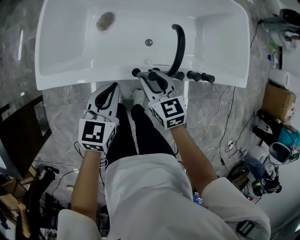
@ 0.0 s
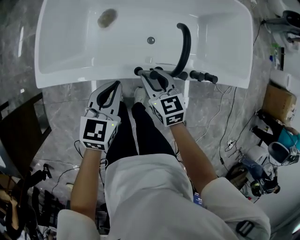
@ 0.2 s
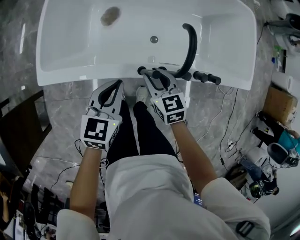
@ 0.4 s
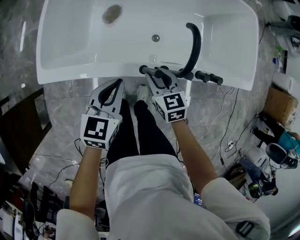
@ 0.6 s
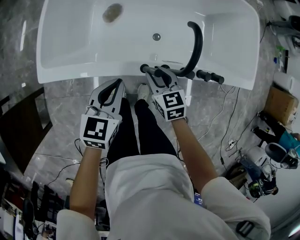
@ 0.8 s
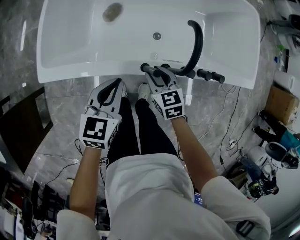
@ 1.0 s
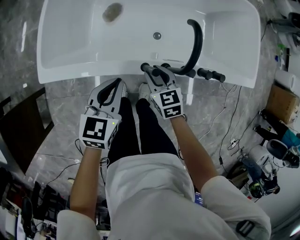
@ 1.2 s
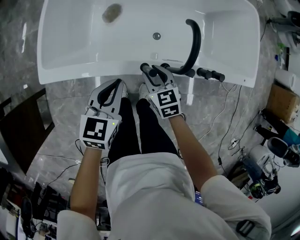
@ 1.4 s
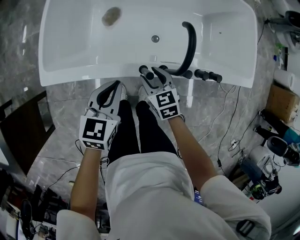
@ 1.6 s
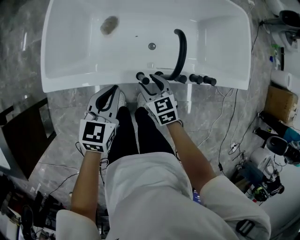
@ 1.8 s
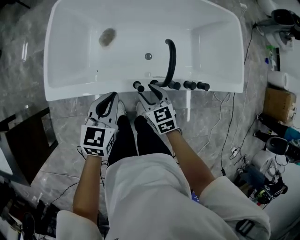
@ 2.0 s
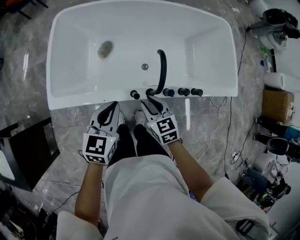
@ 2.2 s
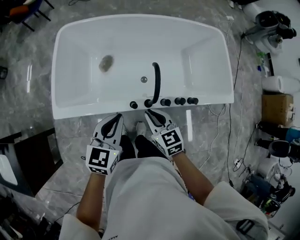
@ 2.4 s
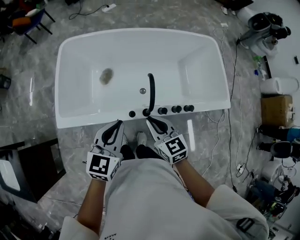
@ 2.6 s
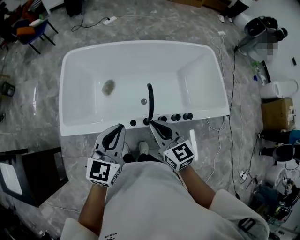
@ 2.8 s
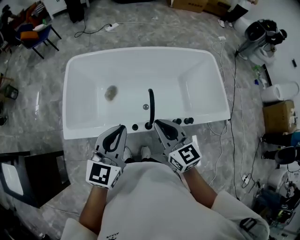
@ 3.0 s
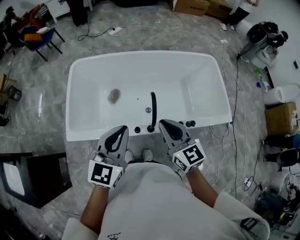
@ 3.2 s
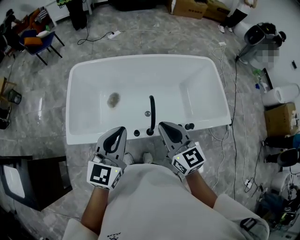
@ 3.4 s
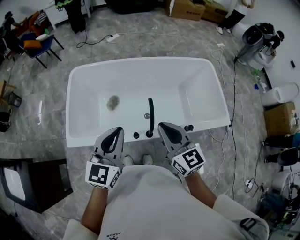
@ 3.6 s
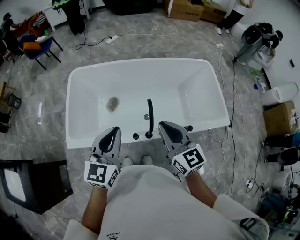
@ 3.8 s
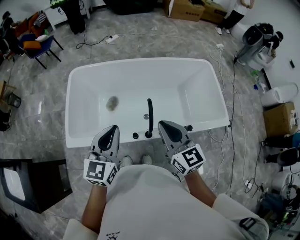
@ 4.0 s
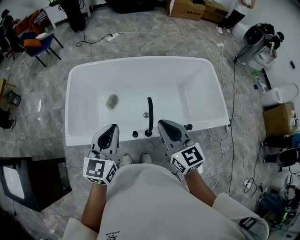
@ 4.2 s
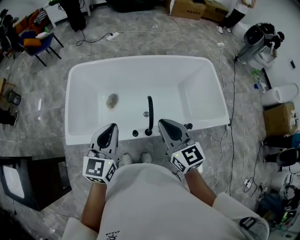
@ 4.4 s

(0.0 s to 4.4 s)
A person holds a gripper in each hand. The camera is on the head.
0.0 s - 1.4 s: The right gripper shifts about 10 cm downward.
1.4 s - 3.0 s: Both grippers move upward, approximately 30 cm. The left gripper rotates about 30 degrees. The right gripper rotates some 30 degrees, and closes.
3.0 s - 4.4 s: There are only small adjustments of the grippers.

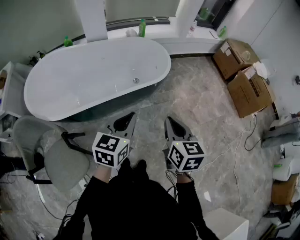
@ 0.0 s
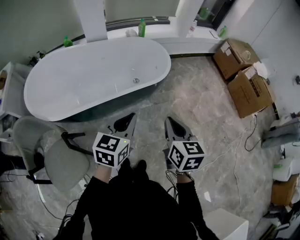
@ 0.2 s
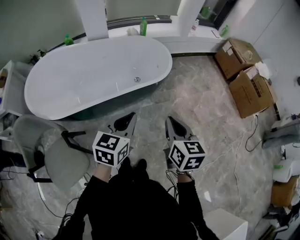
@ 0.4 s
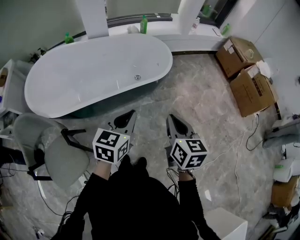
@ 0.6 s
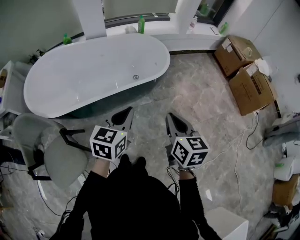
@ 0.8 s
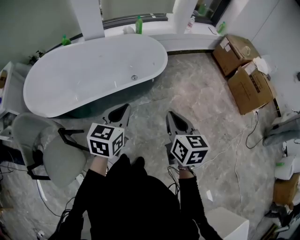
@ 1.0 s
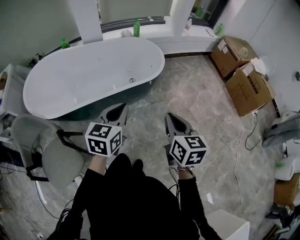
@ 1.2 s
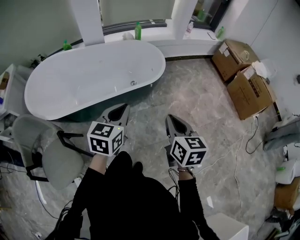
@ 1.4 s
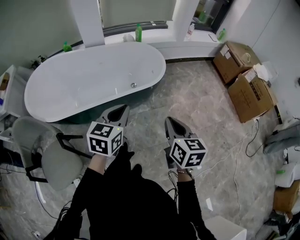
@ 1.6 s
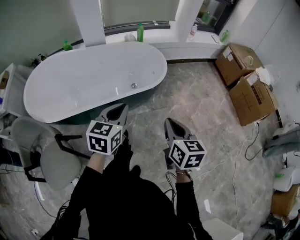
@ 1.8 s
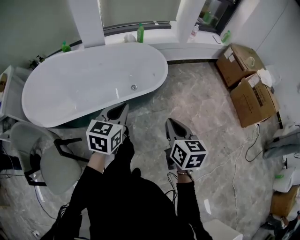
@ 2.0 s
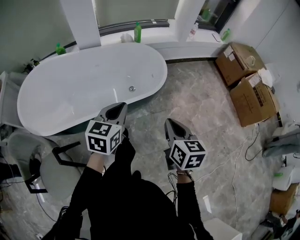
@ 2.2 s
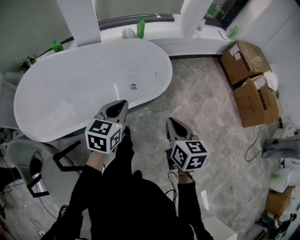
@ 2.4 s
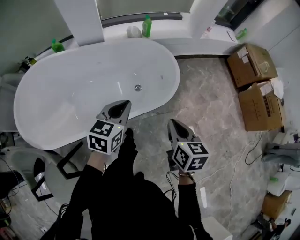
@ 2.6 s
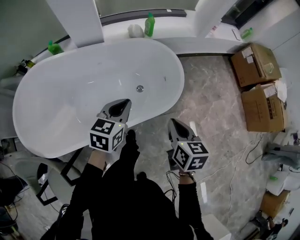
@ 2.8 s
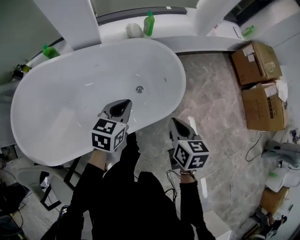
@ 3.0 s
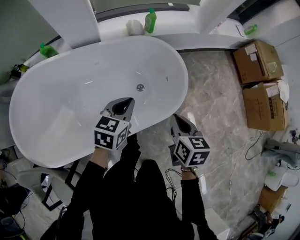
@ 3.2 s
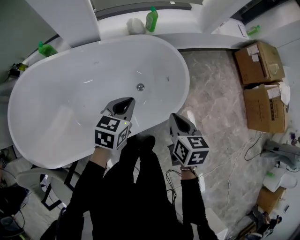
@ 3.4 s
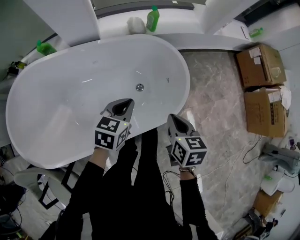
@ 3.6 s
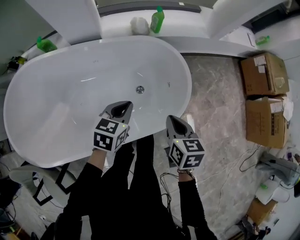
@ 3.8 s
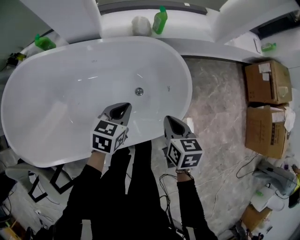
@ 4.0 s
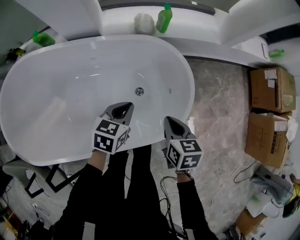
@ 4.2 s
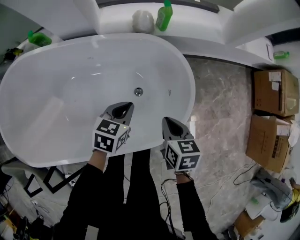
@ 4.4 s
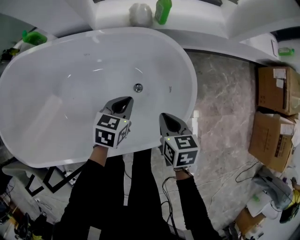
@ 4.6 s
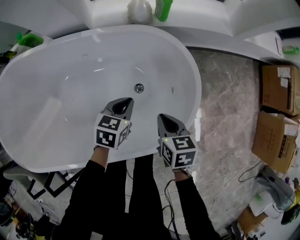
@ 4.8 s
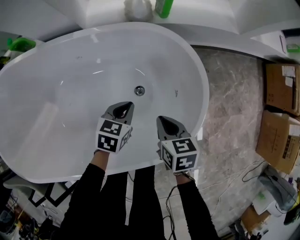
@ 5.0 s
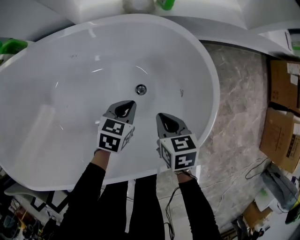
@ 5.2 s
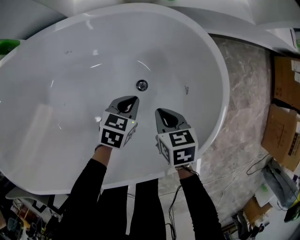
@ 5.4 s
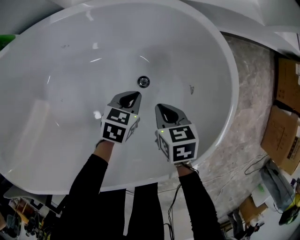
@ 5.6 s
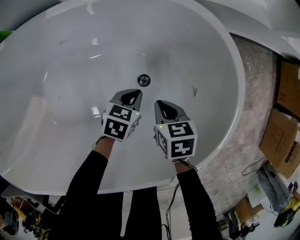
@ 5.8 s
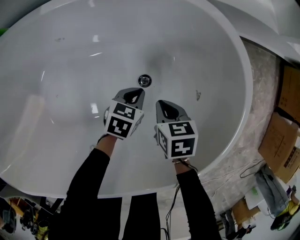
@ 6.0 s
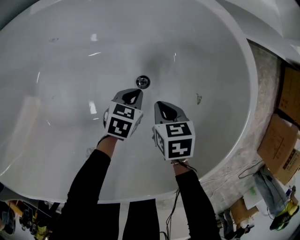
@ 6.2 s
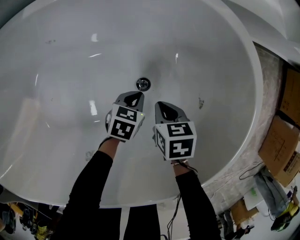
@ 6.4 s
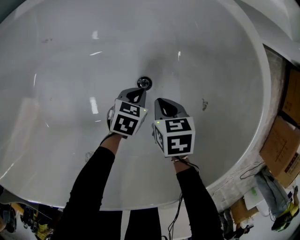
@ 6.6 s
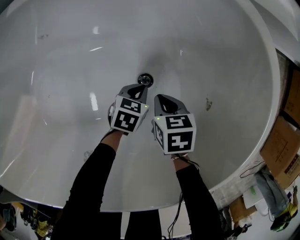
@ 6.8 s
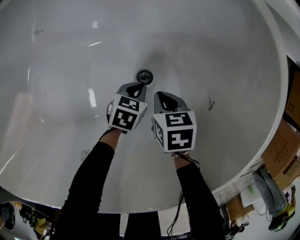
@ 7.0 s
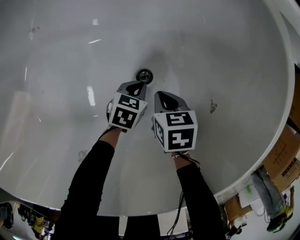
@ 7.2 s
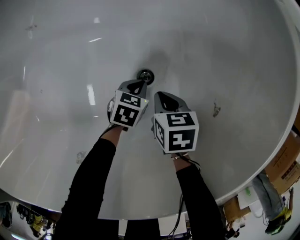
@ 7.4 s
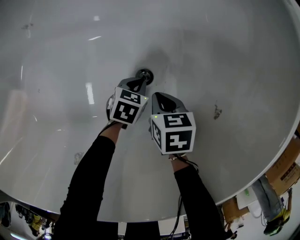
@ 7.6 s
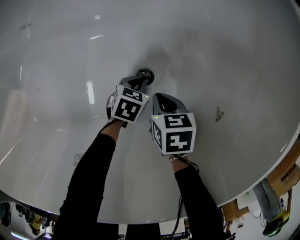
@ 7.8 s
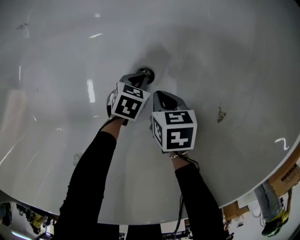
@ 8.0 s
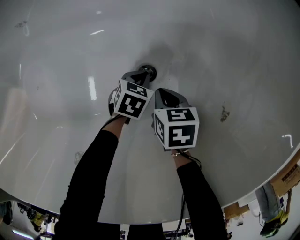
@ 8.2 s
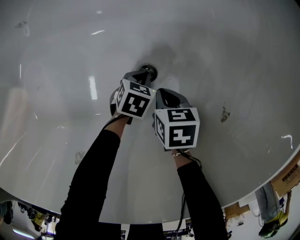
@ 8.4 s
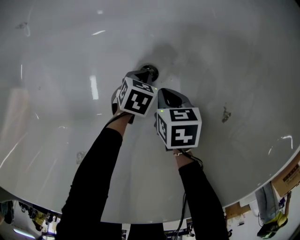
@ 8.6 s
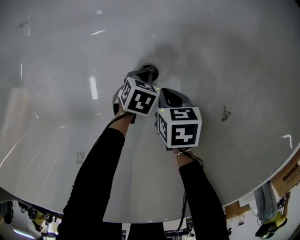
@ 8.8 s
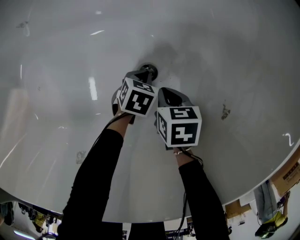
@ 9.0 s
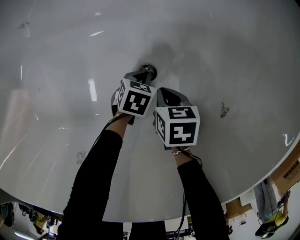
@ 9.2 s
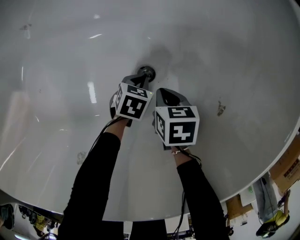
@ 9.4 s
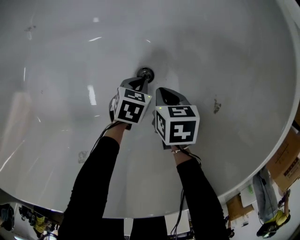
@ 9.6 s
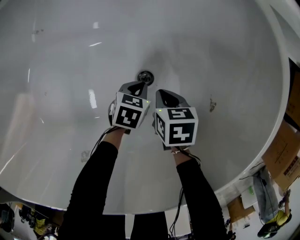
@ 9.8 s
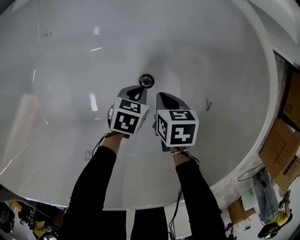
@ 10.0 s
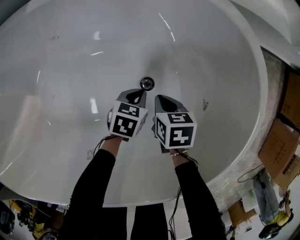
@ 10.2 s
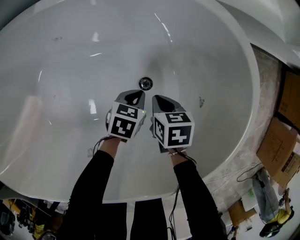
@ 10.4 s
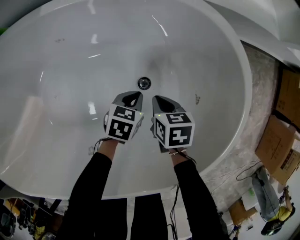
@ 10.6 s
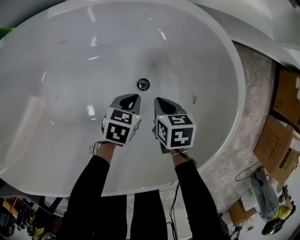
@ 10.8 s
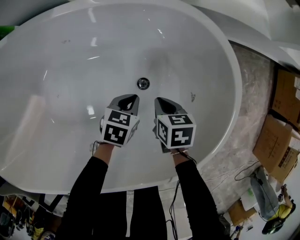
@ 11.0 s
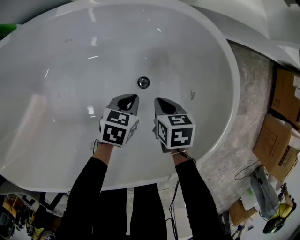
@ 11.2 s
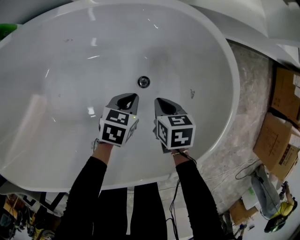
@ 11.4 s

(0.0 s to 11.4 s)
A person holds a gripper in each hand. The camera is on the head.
0.0 s - 1.4 s: The right gripper shifts roughly 5 cm to the right.
1.4 s - 2.8 s: The two grippers go roughly 30 cm forward.
2.8 s - 4.2 s: The grippers both shift forward and downward by approximately 25 cm.
4.2 s - 5.6 s: The grippers both shift downward by roughly 25 cm.
5.6 s - 7.2 s: The grippers both shift downward by about 20 cm.
7.2 s - 8.6 s: Both grippers move downward, about 5 cm.
8.6 s - 10.0 s: The left gripper heads upward, covering some 10 cm; the right gripper moves upward, roughly 10 cm.
10.0 s - 11.4 s: Both grippers travel together upward, about 15 cm.

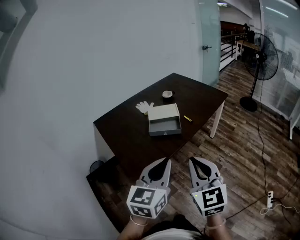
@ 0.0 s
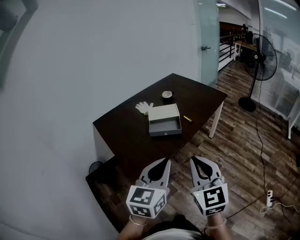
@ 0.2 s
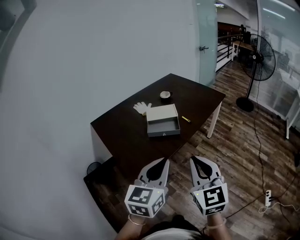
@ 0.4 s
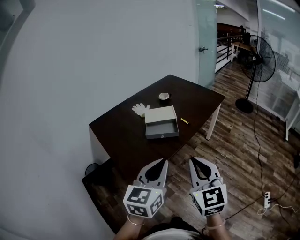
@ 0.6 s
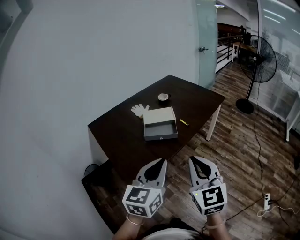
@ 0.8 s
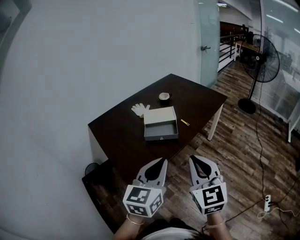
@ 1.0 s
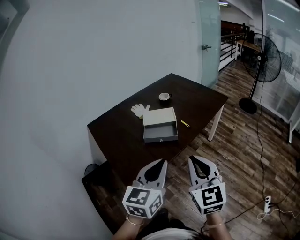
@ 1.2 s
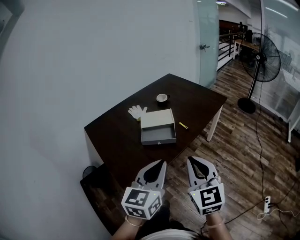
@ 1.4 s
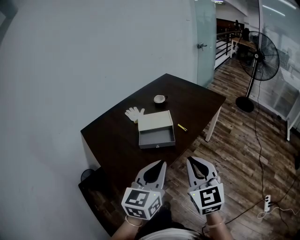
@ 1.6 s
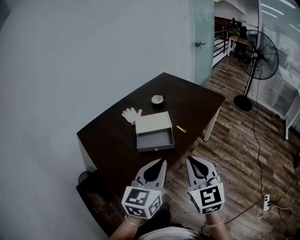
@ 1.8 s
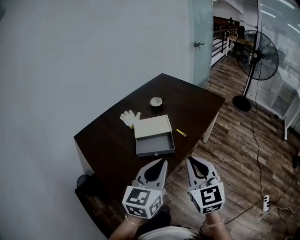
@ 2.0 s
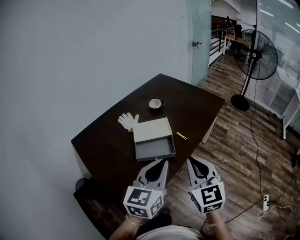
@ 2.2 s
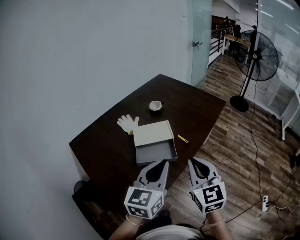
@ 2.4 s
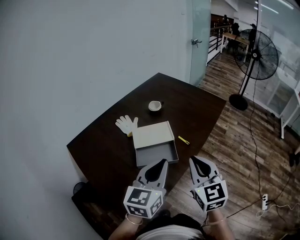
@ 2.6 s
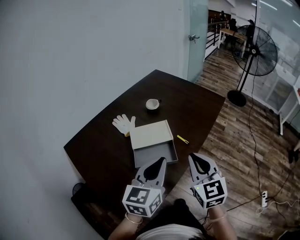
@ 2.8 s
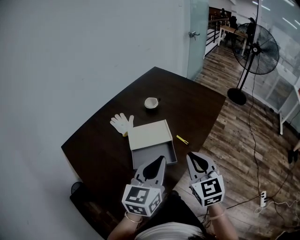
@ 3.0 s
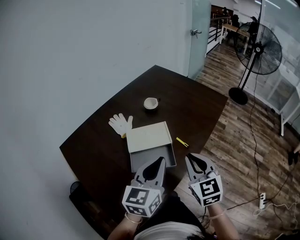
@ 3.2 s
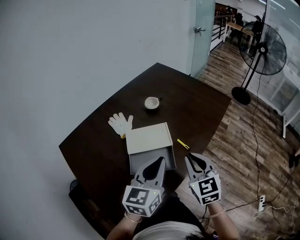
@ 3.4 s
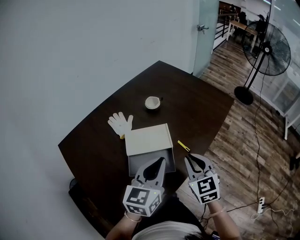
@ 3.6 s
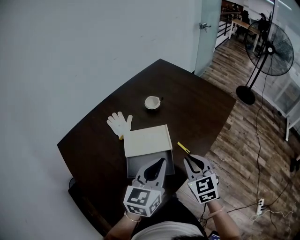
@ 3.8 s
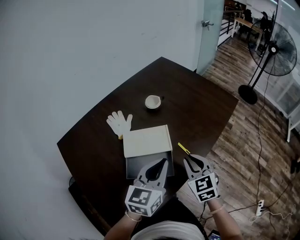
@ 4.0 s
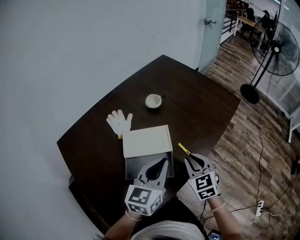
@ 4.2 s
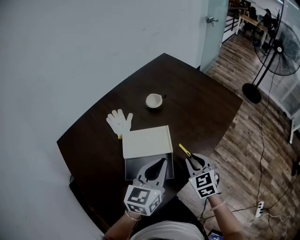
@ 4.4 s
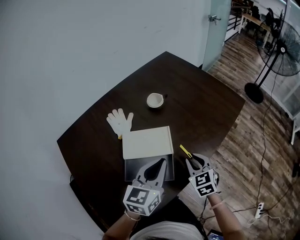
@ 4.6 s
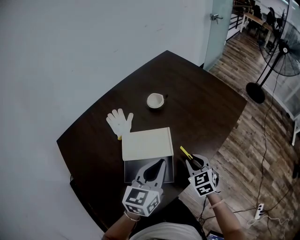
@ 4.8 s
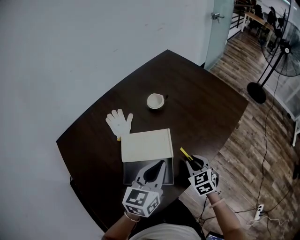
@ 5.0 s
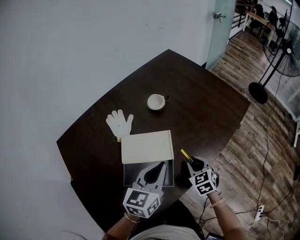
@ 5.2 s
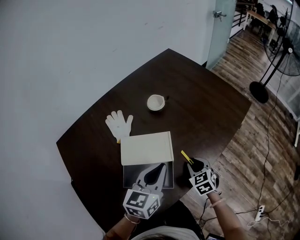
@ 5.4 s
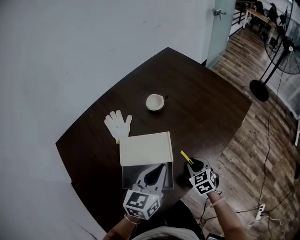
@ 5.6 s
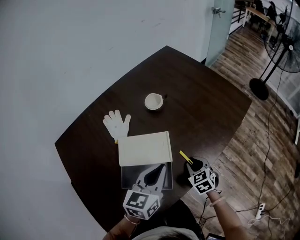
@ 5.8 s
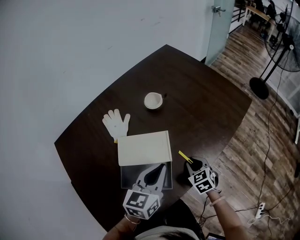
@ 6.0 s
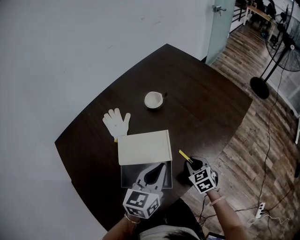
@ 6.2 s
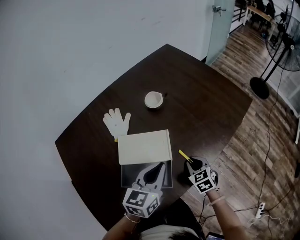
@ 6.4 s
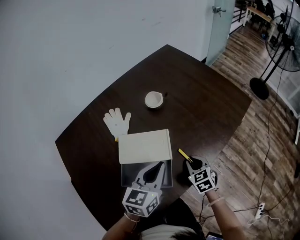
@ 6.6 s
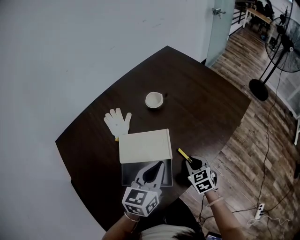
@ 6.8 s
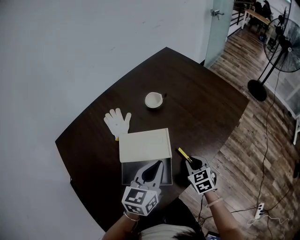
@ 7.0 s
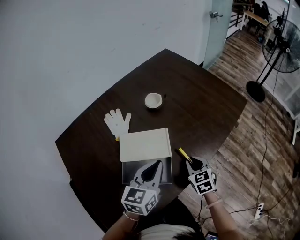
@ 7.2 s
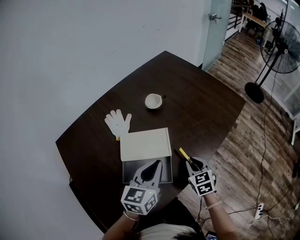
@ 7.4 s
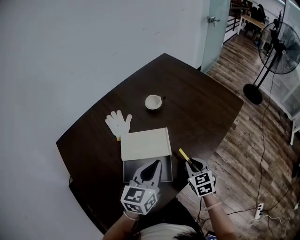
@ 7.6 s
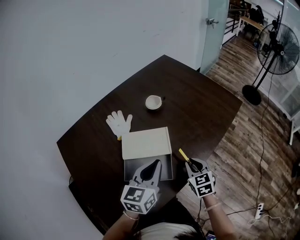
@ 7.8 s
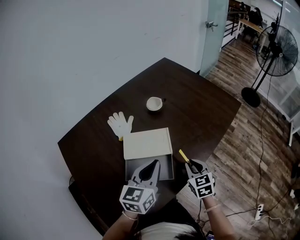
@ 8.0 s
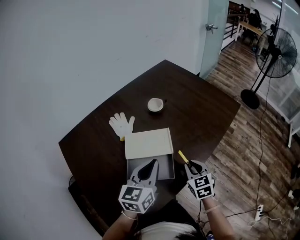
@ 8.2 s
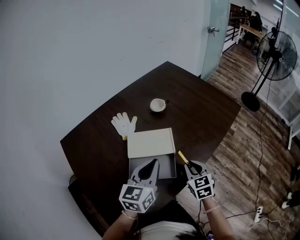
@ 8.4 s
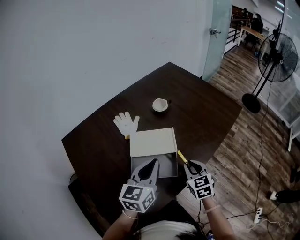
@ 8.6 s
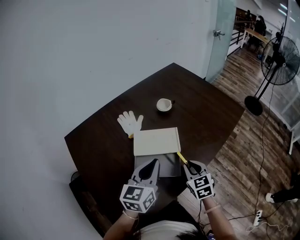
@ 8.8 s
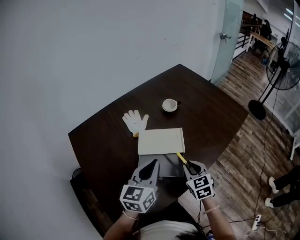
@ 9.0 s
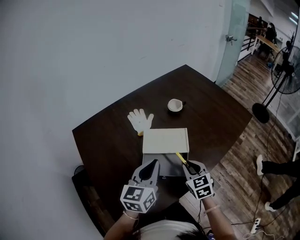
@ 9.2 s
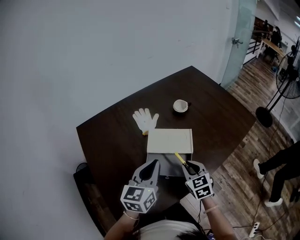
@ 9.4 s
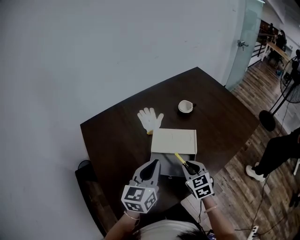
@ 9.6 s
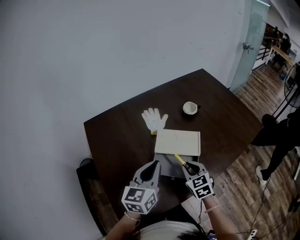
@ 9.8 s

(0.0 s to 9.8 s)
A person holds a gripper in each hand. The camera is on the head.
0.0 s - 1.4 s: Both grippers travel together forward, about 10 cm.
1.4 s - 2.8 s: The two grippers go roughly 25 cm forward.
2.8 s - 4.2 s: Both grippers travel together forward and downward, roughly 20 cm. The right gripper turns by some 20 degrees.
4.2 s - 5.6 s: The left gripper goes roughly 10 cm forward and downward. The right gripper goes roughly 15 cm downward and forward.
5.6 s - 7.0 s: The grippers make only small movements.
7.0 s - 8.4 s: The right gripper goes approximately 10 cm upward and backward. The left gripper goes about 10 cm backward and upward.
8.4 s - 9.8 s: The two grippers go about 15 cm to the left. The right gripper rotates roughly 20 degrees.
